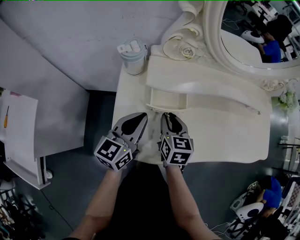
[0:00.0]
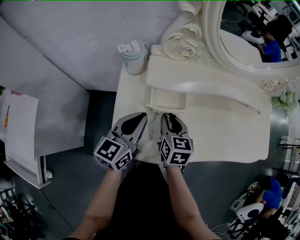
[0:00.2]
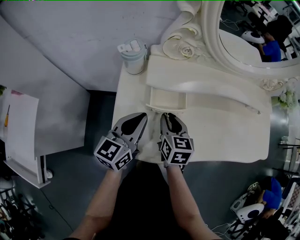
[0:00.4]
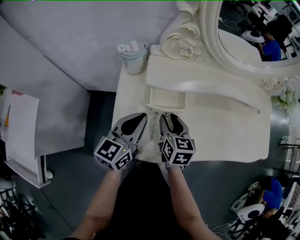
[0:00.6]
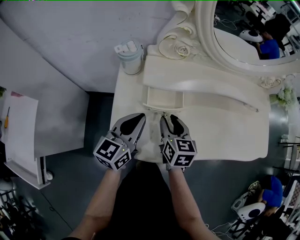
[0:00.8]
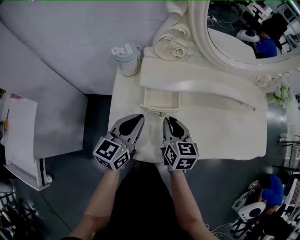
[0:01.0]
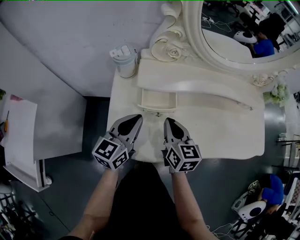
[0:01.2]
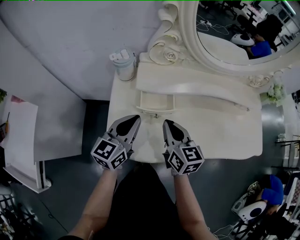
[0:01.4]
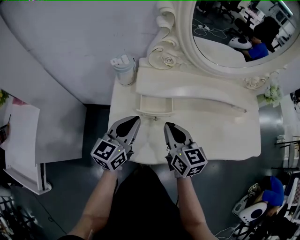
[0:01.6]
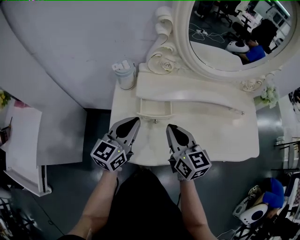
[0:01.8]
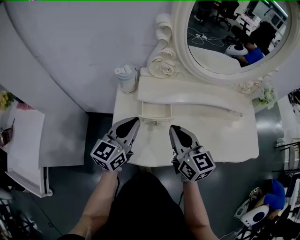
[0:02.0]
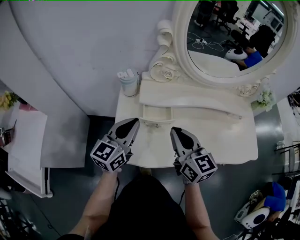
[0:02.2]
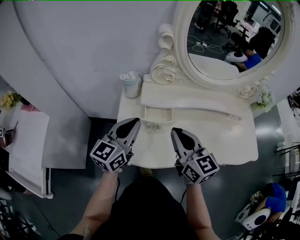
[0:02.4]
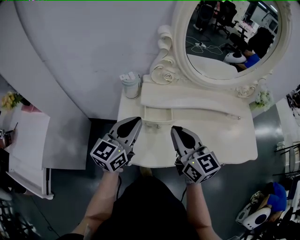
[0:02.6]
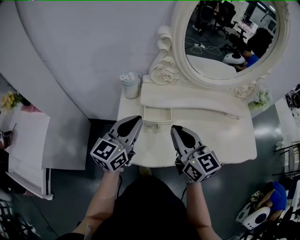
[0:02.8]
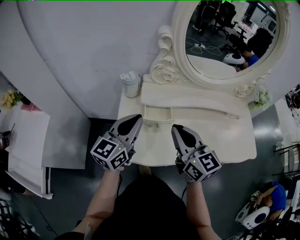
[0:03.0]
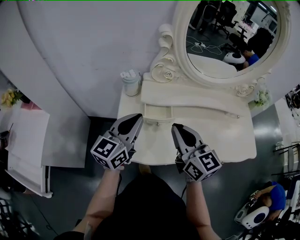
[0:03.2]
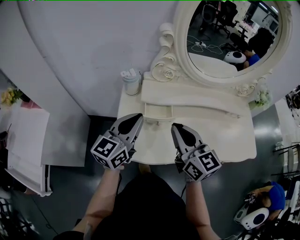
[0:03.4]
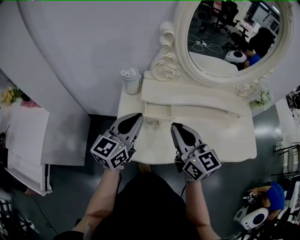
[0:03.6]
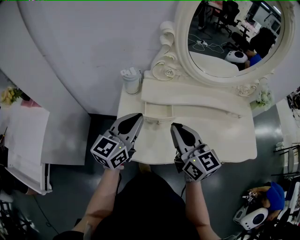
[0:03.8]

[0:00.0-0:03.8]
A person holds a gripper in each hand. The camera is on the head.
0:00.0 to 0:01.2: The right gripper heads upward, covering about 5 cm, and closes up.
0:01.2 to 0:02.6: The two grippers go about 15 cm upward. The right gripper changes its angle by about 20 degrees.
0:02.6 to 0:03.8: The two grippers keep their place.

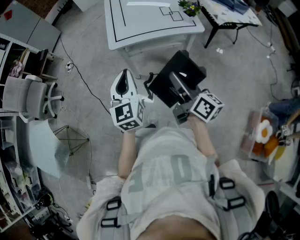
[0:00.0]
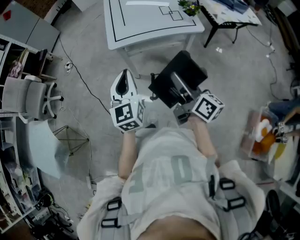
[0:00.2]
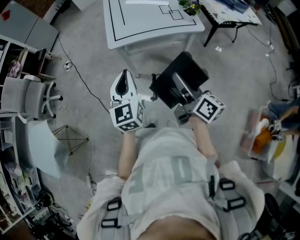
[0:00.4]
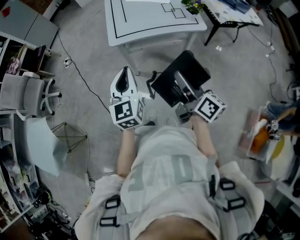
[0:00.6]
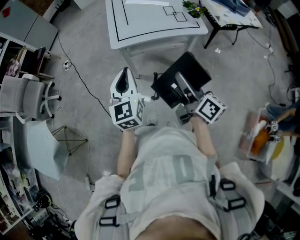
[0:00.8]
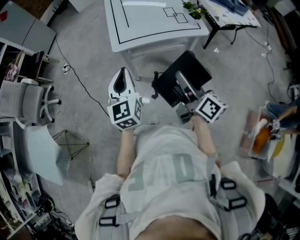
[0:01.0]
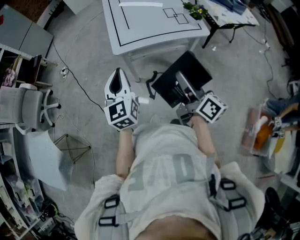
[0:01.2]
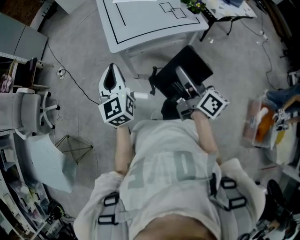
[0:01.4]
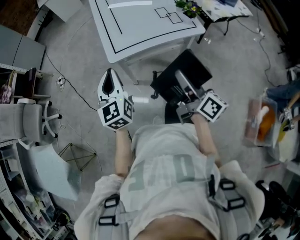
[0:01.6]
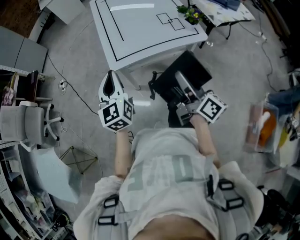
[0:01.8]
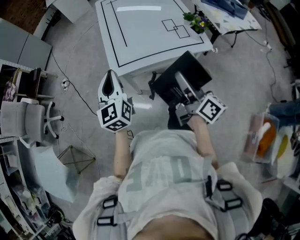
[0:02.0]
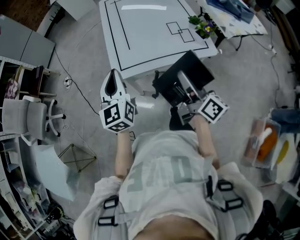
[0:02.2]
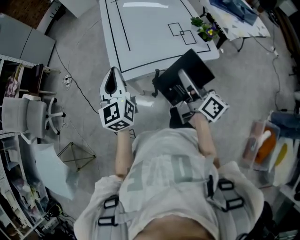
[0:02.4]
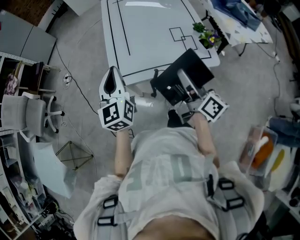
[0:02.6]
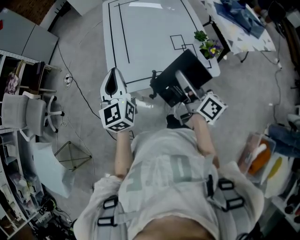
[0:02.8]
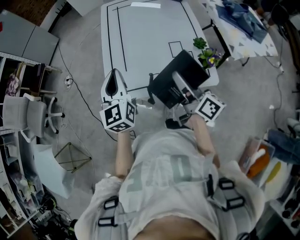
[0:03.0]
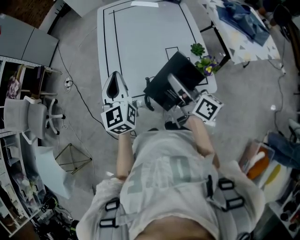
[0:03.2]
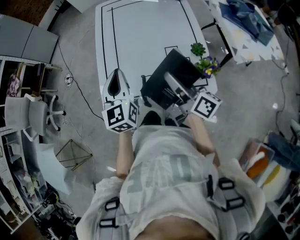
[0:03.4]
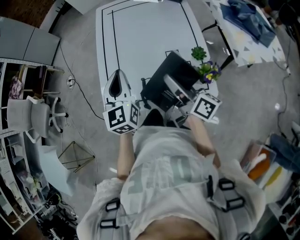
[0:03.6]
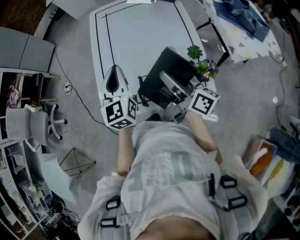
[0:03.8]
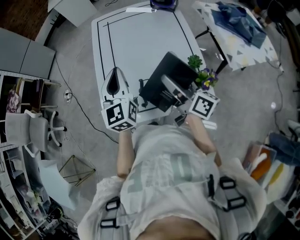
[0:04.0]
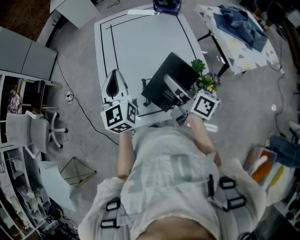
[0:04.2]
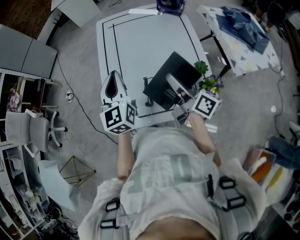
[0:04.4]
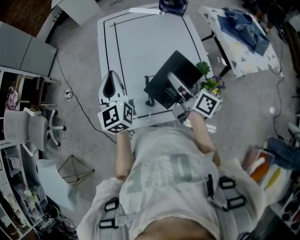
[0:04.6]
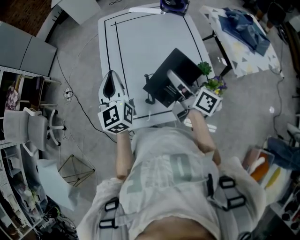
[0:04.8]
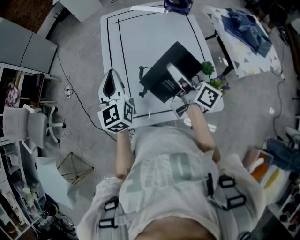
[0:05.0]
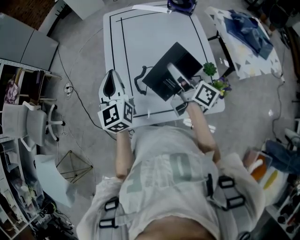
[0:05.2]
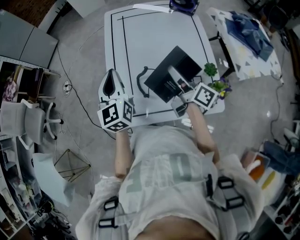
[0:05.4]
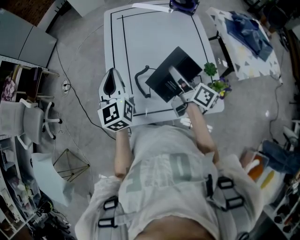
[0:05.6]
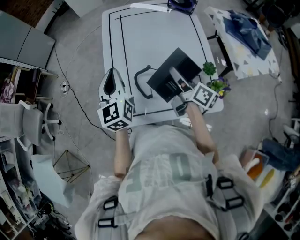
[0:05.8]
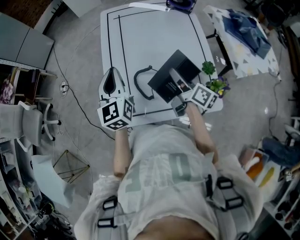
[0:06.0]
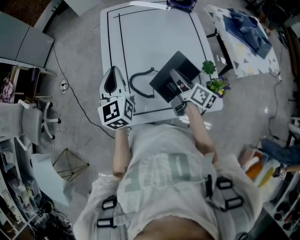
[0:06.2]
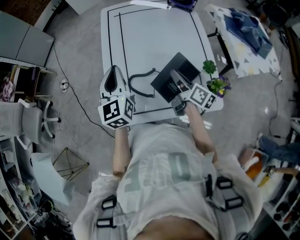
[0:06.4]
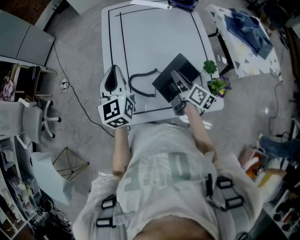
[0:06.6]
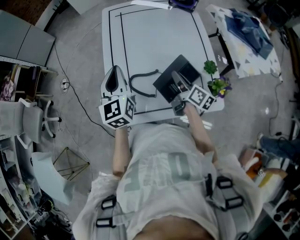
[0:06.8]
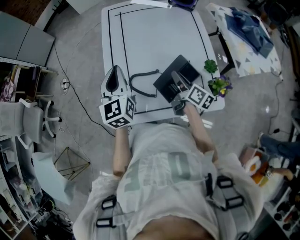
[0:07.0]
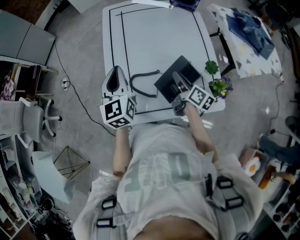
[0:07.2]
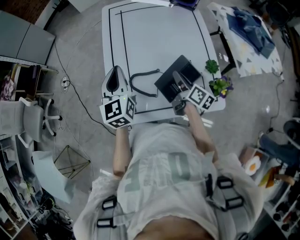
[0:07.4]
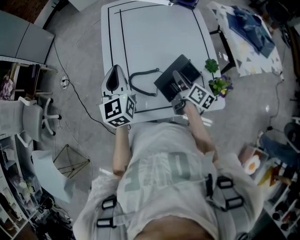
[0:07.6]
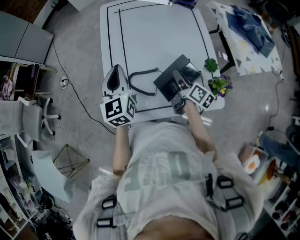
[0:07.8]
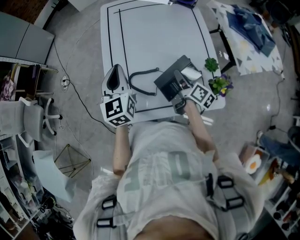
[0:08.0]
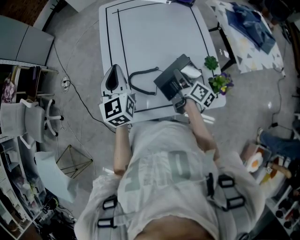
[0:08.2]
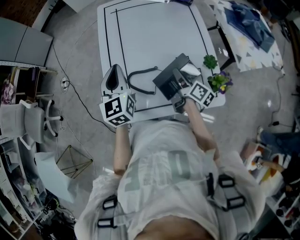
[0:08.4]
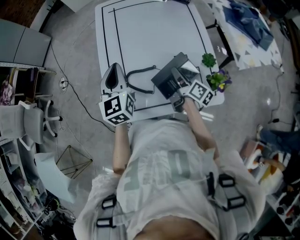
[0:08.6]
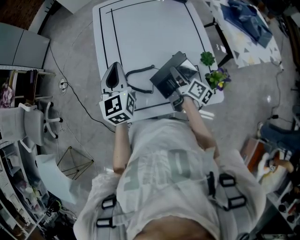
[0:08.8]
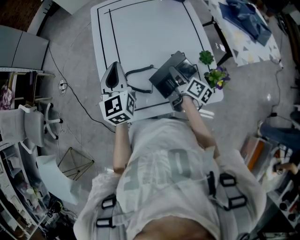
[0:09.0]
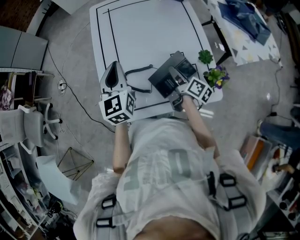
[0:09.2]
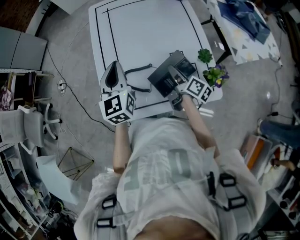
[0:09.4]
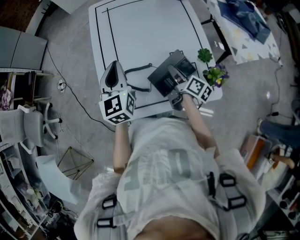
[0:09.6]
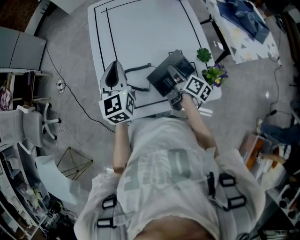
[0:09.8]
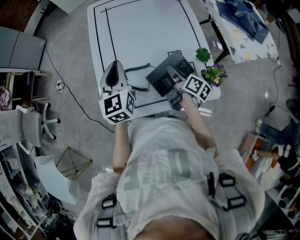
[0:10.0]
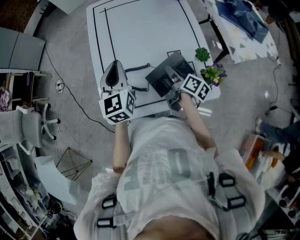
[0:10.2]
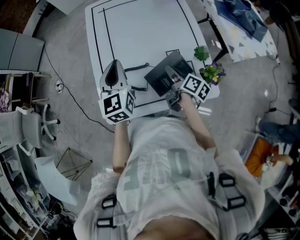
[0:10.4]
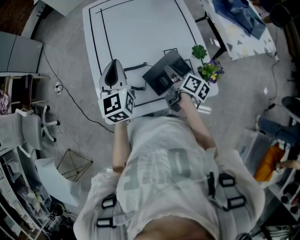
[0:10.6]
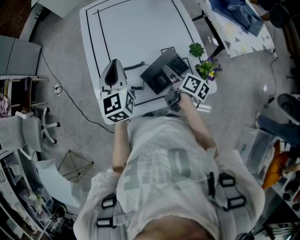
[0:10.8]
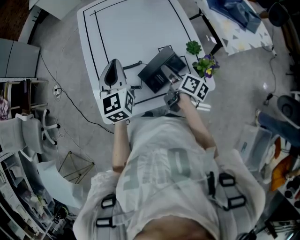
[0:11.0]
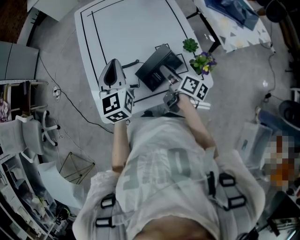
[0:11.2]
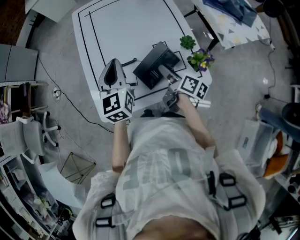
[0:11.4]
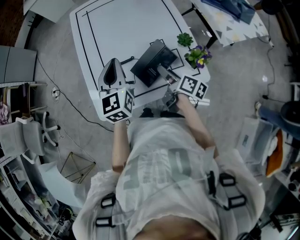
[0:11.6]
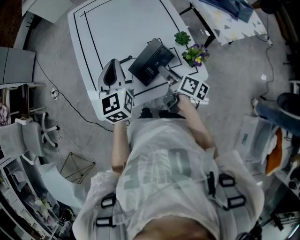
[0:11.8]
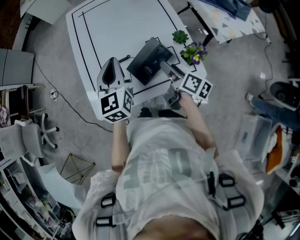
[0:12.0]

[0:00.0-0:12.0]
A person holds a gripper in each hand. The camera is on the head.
0:00.0 to 0:01.6: The right gripper goes roughly 10 cm forward. Meanwhile the left gripper goes approximately 15 cm forward and to the left.
0:01.6 to 0:03.0: The right gripper travels forward by some 25 cm, while the left gripper is displaced forward and to the right by approximately 25 cm.
0:03.0 to 0:04.4: The left gripper travels forward and to the right by some 15 cm. Meanwhile the right gripper heads forward, covering about 15 cm.
0:04.4 to 0:06.0: The left gripper shifts by approximately 5 cm; the right gripper shifts about 5 cm downward.
0:06.0 to 0:07.6: The right gripper is displaced downward by approximately 5 cm.
0:07.6 to 0:10.4: The grippers make only small movements.
0:10.4 to 0:12.0: The right gripper shifts some 10 cm backward and upward. The left gripper heads to the right, covering some 5 cm.

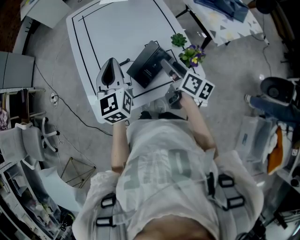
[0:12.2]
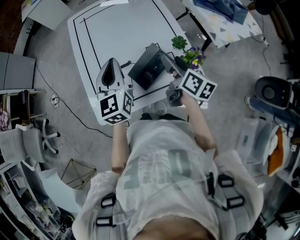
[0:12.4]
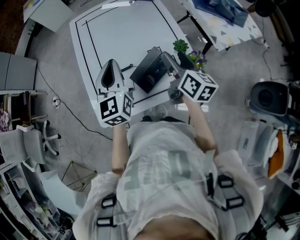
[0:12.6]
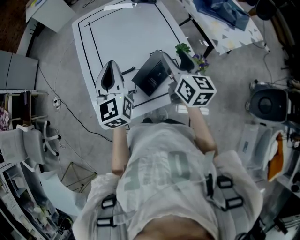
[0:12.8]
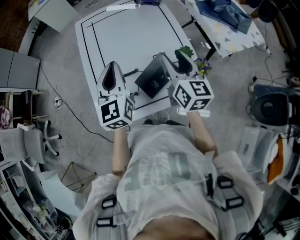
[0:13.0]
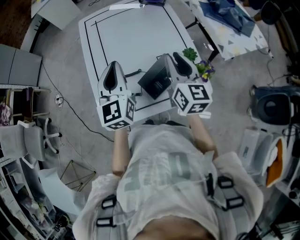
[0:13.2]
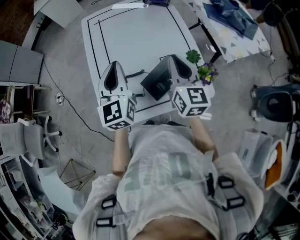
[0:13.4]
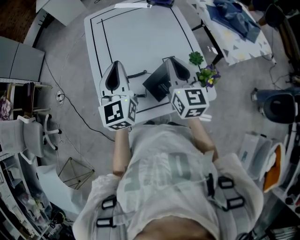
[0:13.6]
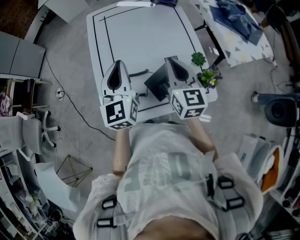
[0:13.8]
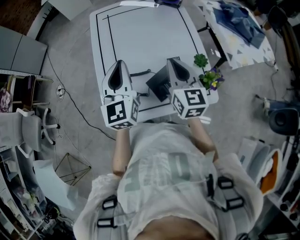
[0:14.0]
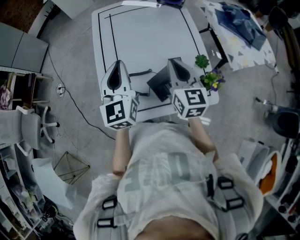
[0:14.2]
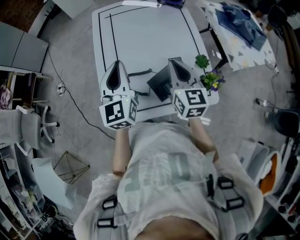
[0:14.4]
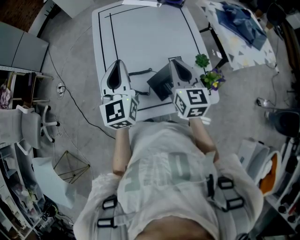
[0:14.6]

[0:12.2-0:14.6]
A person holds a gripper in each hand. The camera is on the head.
0:12.2 to 0:13.4: The right gripper heads upward and forward, covering some 10 cm, rolls counterclockwise, seen from behind, by about 40 degrees, and closes up. The left gripper changes place by some 5 cm.
0:13.4 to 0:14.6: The grippers move only a little.

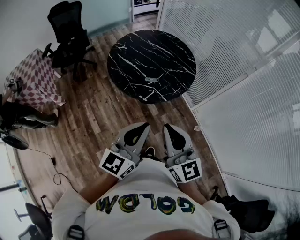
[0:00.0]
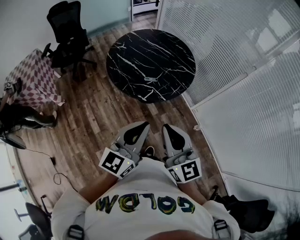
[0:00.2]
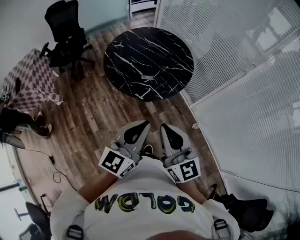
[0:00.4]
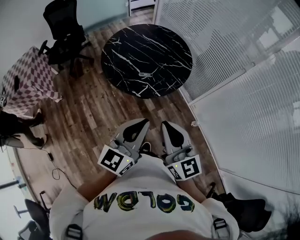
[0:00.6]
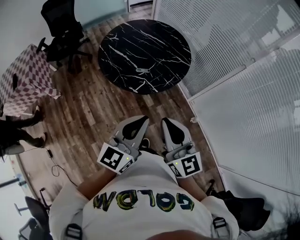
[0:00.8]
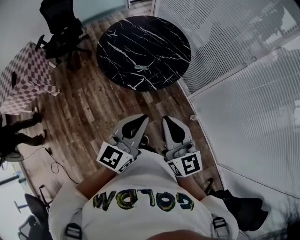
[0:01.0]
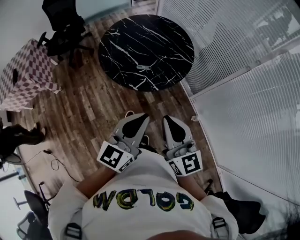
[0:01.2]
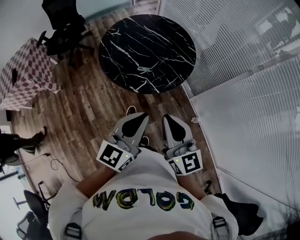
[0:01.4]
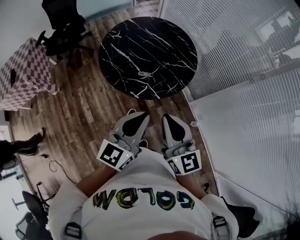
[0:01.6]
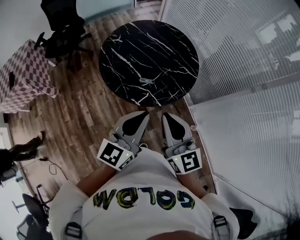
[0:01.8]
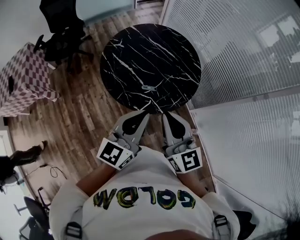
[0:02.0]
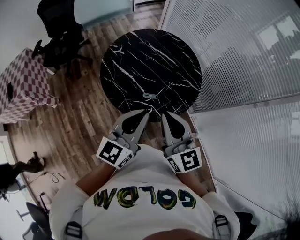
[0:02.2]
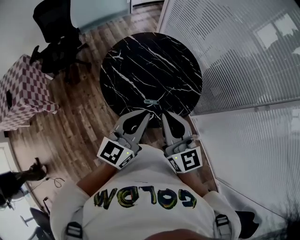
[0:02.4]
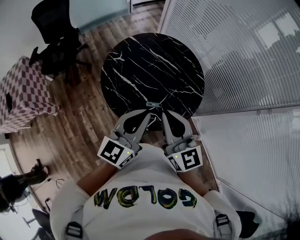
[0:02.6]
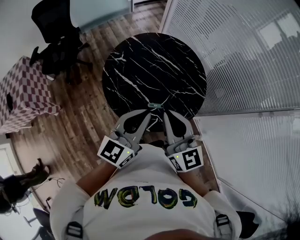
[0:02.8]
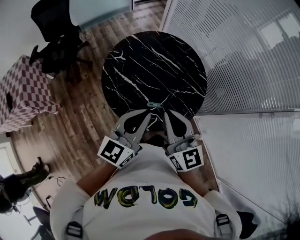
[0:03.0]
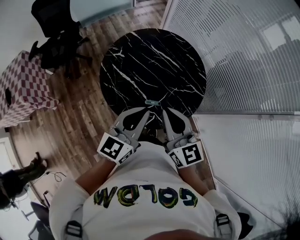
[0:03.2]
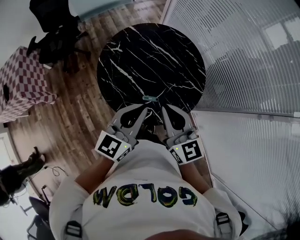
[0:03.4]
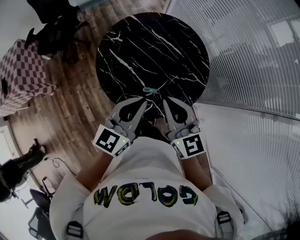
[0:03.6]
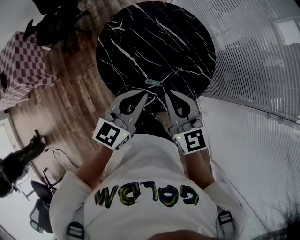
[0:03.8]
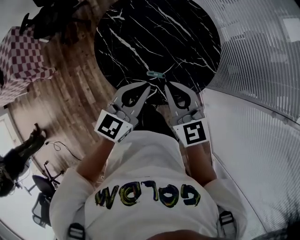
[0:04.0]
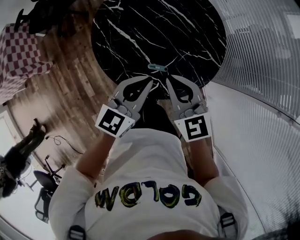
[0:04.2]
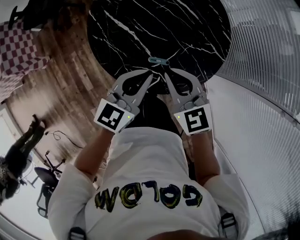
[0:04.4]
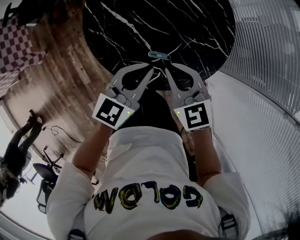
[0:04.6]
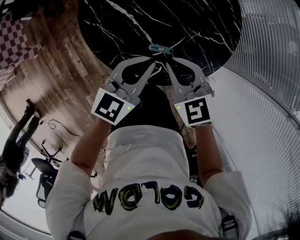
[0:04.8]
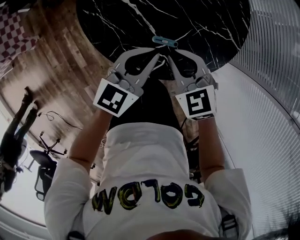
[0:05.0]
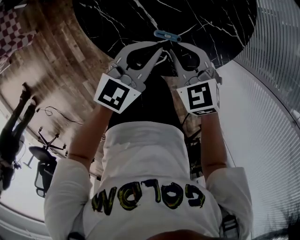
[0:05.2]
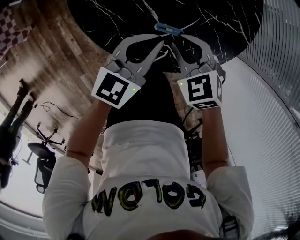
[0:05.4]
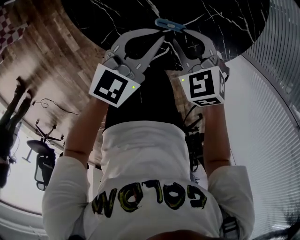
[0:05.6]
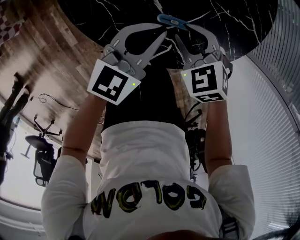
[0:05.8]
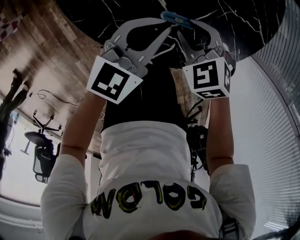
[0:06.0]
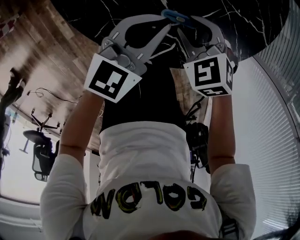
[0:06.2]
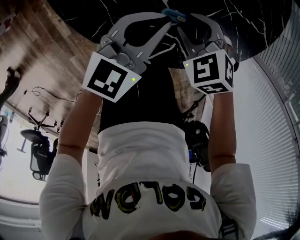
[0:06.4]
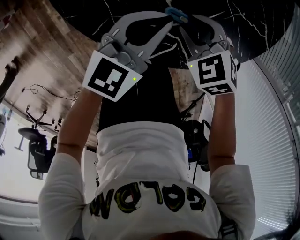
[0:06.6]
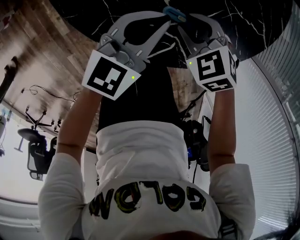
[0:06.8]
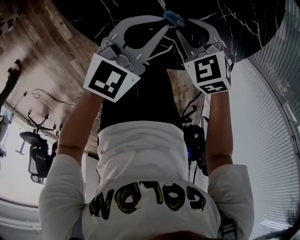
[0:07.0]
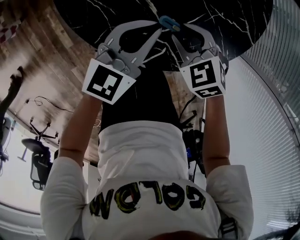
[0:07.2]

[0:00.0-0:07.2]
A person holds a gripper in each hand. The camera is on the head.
0:00.0 to 0:01.4: The left gripper heads to the right and forward, covering roughly 10 cm; the right gripper shifts approximately 10 cm forward and to the right.
0:01.4 to 0:02.8: The grippers both shift forward and to the left by about 30 cm.
0:02.8 to 0:04.4: The grippers both shift downward by approximately 20 cm. The right gripper angles its fingers downward, by roughly 30 degrees.
0:04.4 to 0:05.8: Both grippers move downward, some 20 cm. The right gripper swivels about 30 degrees, and opens up.
0:05.8 to 0:07.2: There are only small adjustments of the grippers.